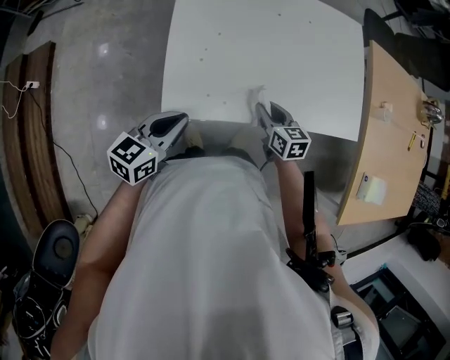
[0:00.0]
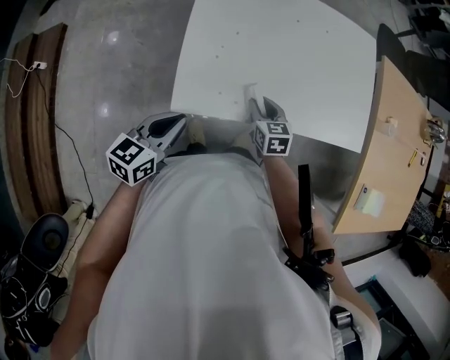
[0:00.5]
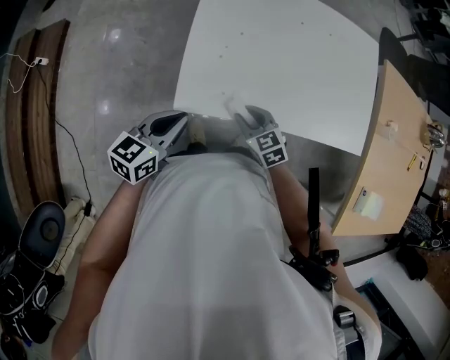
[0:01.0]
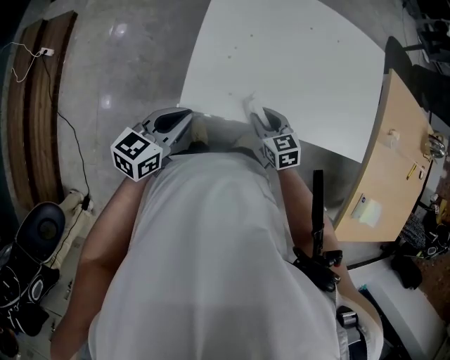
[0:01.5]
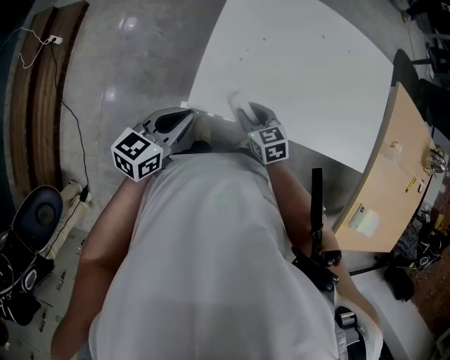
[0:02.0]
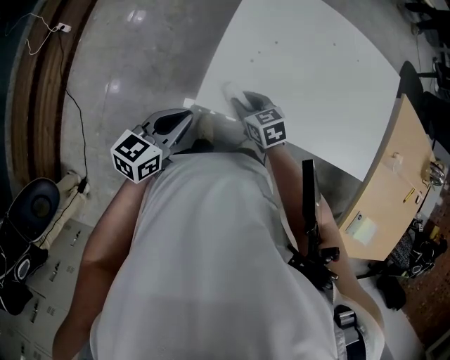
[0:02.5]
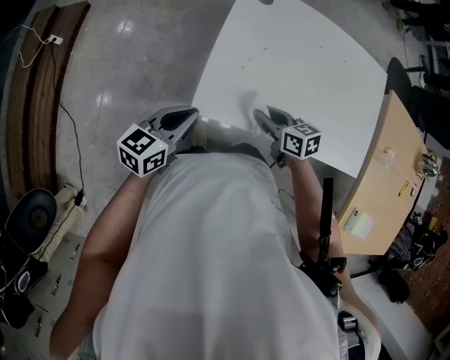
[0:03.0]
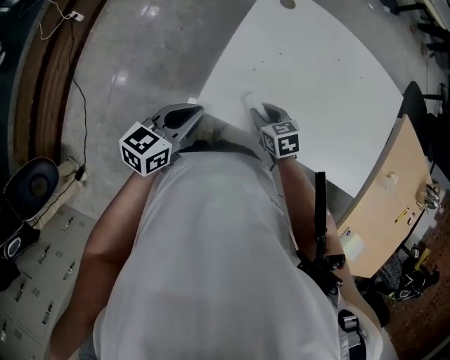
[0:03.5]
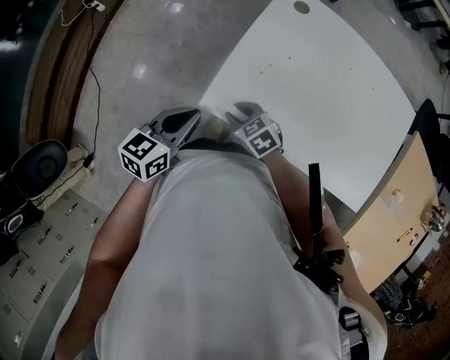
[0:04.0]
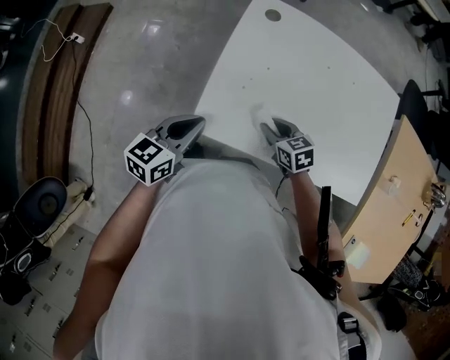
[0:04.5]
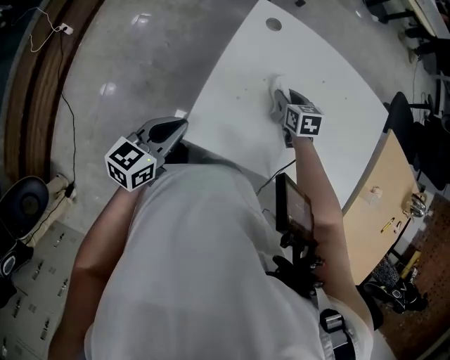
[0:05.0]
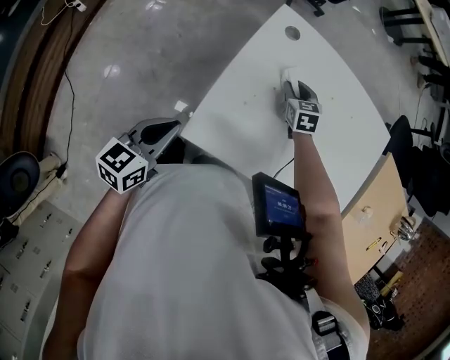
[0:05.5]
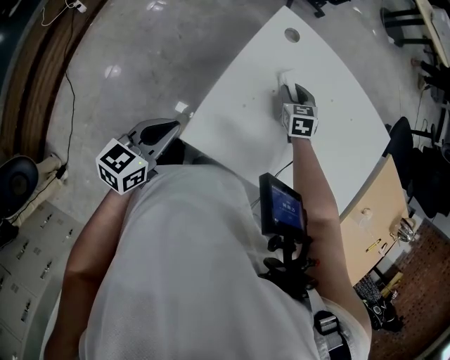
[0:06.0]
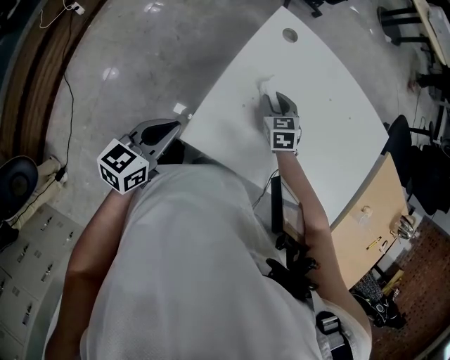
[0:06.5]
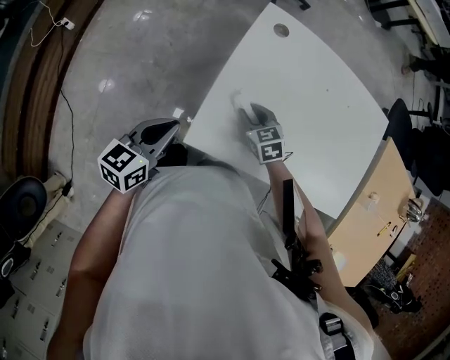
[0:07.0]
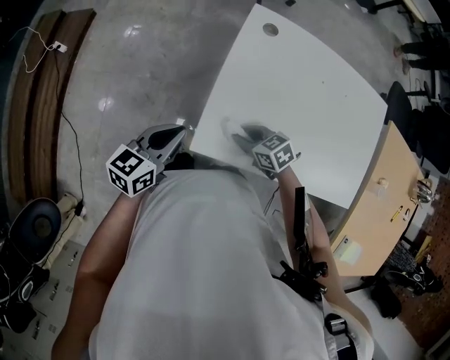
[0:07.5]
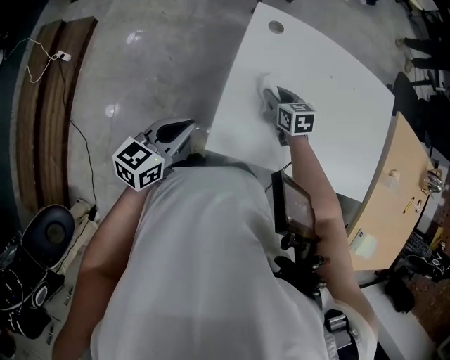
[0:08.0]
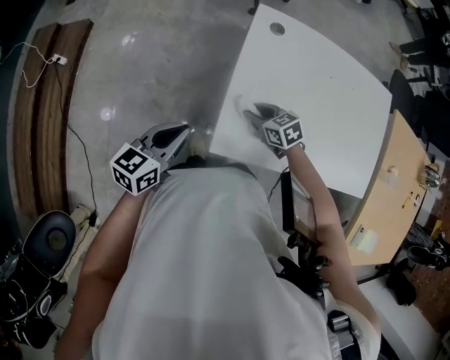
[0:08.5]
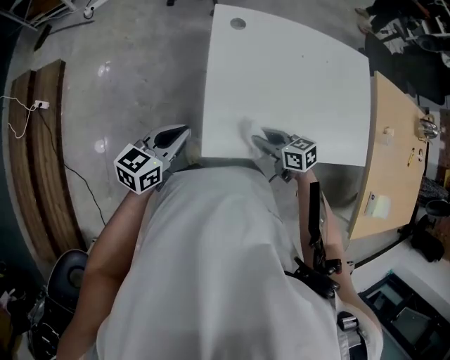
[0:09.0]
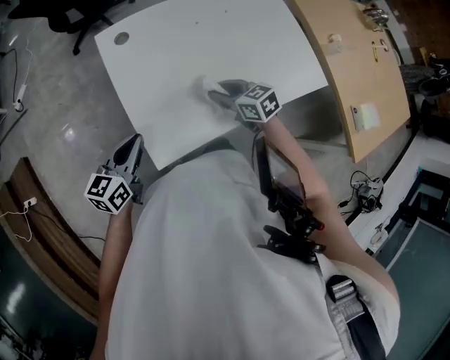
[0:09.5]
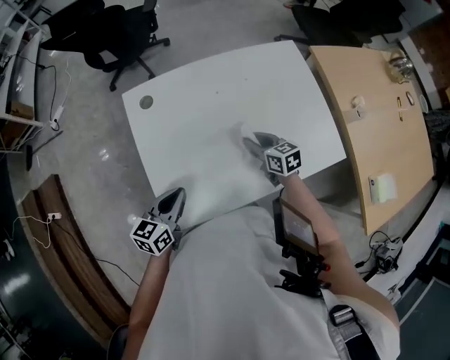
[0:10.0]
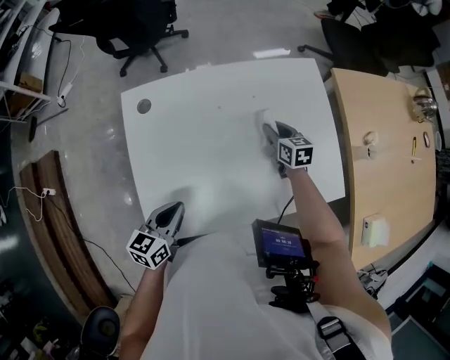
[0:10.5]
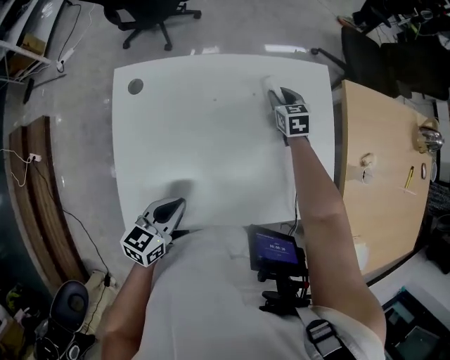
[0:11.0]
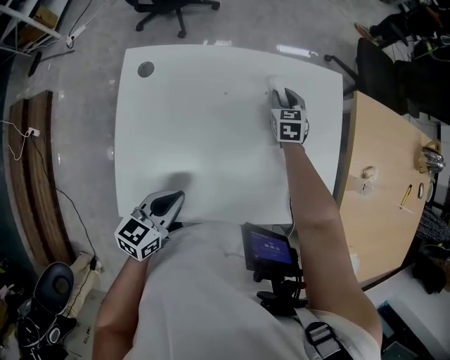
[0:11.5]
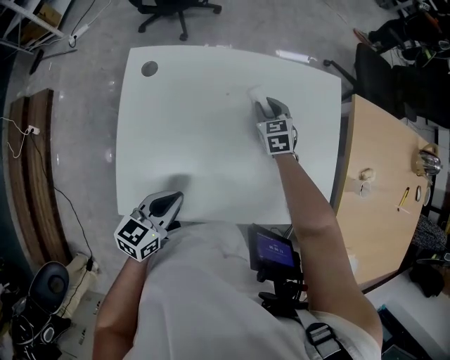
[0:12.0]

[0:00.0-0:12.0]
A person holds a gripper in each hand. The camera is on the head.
0:00.0 to 0:02.0: The left gripper heads to the left, covering approximately 5 cm; the right gripper heads to the left, covering approximately 15 cm, and swivels about 30 degrees.
0:02.0 to 0:04.0: The right gripper ends up approximately 10 cm from where it was, and turns by some 30 degrees.
0:04.0 to 0:06.0: The right gripper shifts by approximately 30 cm, and turns by some 40 degrees; the left gripper shifts by roughly 5 cm.
0:06.0 to 0:08.0: The right gripper travels to the left by about 5 cm, goes backward and returns, approximately 20 cm each way, and changes its angle by about 20 degrees.
0:08.0 to 0:10.0: The right gripper ends up roughly 25 cm from where it was, and swivels roughly 30 degrees. Meanwhile the left gripper changes place by about 20 cm.
0:10.0 to 0:12.0: The right gripper is displaced forward by some 20 cm, and rotates approximately 30 degrees, while the left gripper travels to the right by roughly 10 cm.

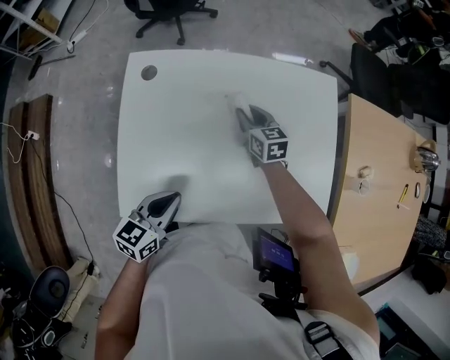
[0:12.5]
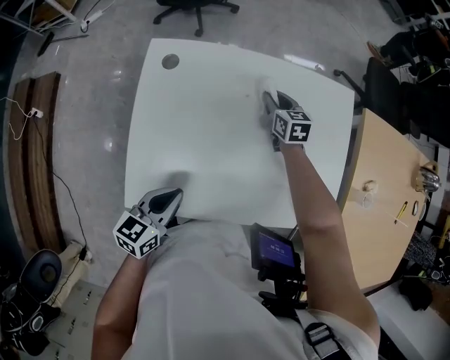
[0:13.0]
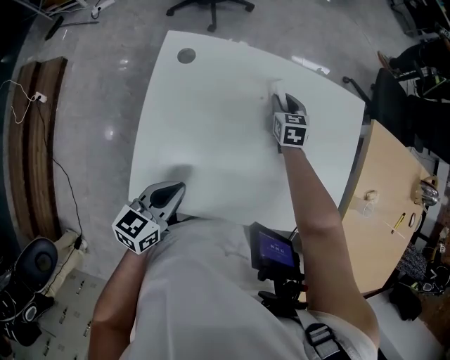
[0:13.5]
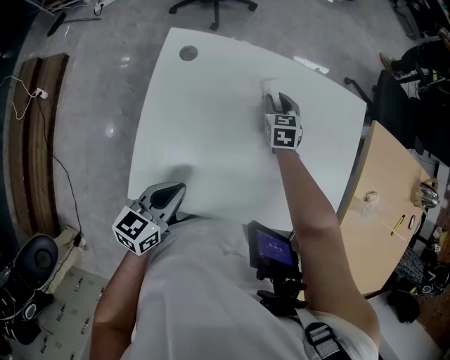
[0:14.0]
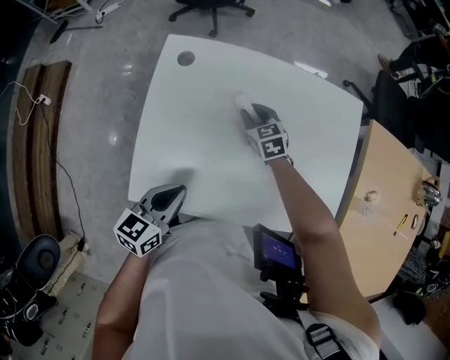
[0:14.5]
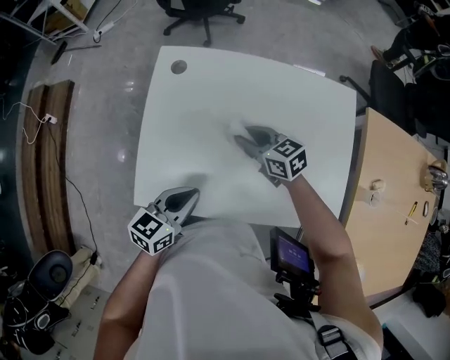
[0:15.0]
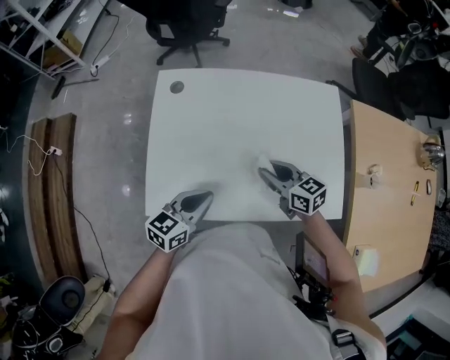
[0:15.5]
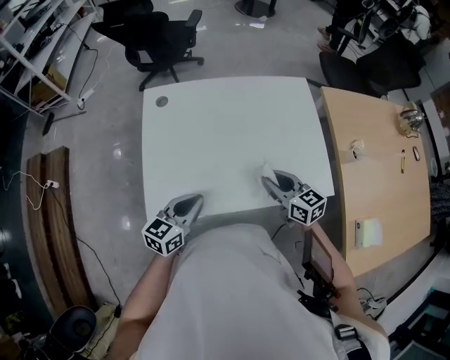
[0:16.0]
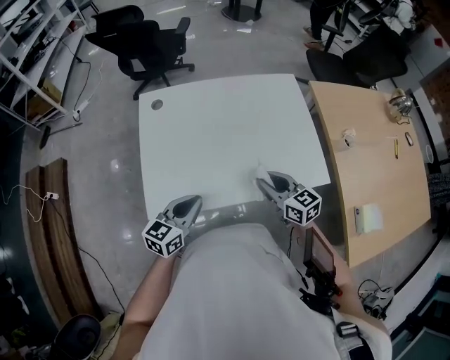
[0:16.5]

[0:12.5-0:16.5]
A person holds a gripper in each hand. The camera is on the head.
0:12.5 to 0:14.5: The right gripper moves to the left, roughly 10 cm, and rotates about 20 degrees.
0:14.5 to 0:16.5: The left gripper heads backward, covering some 10 cm, and changes its angle by some 20 degrees; the right gripper is displaced backward and upward by some 35 cm, and swivels roughly 30 degrees.

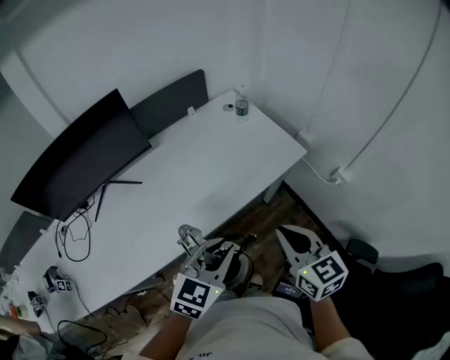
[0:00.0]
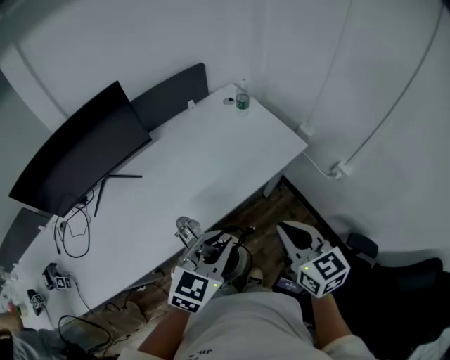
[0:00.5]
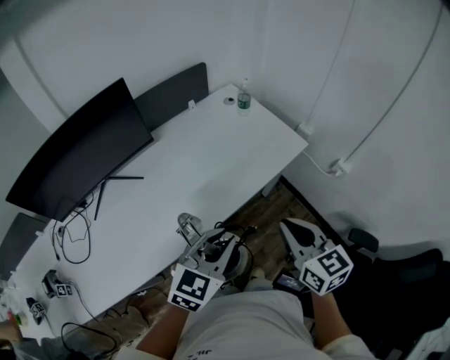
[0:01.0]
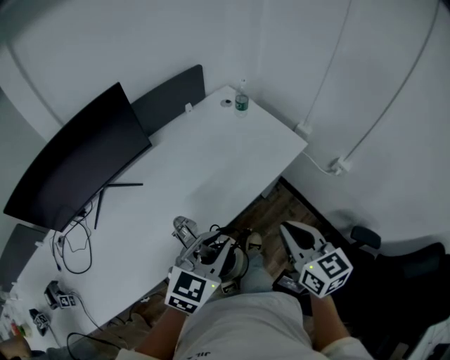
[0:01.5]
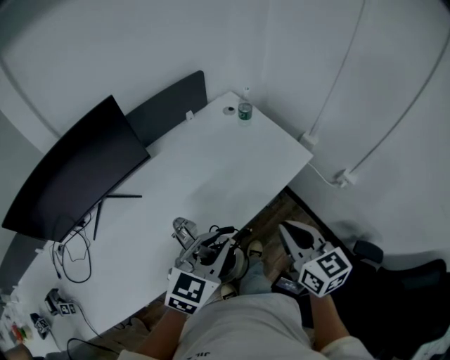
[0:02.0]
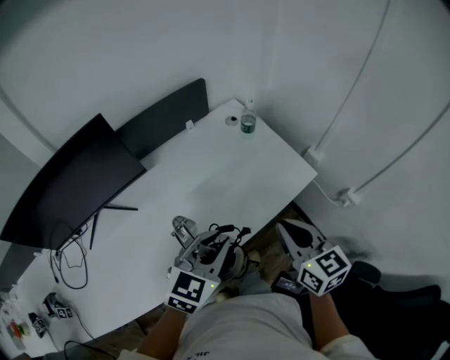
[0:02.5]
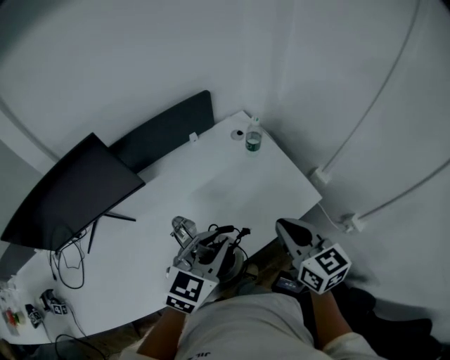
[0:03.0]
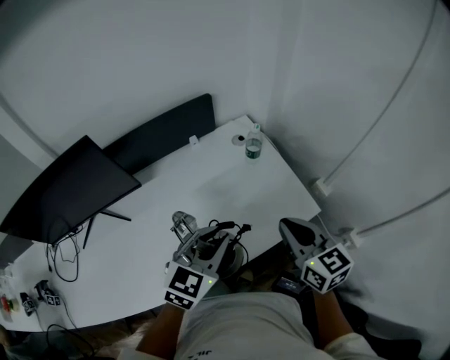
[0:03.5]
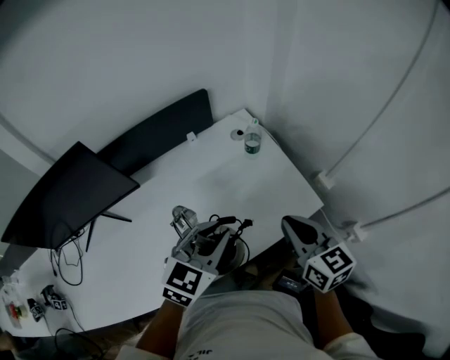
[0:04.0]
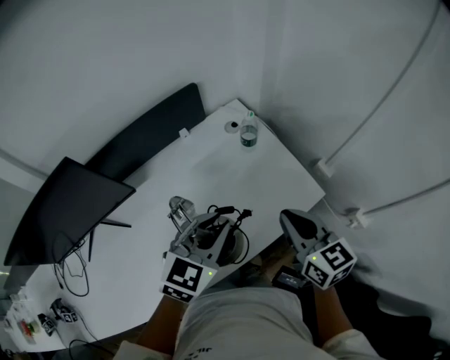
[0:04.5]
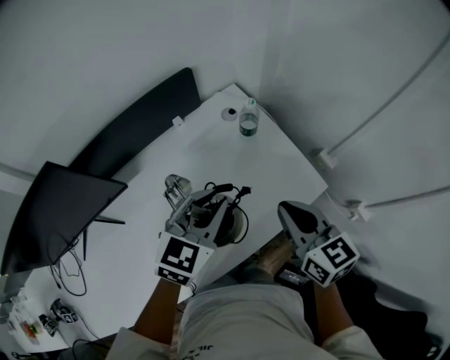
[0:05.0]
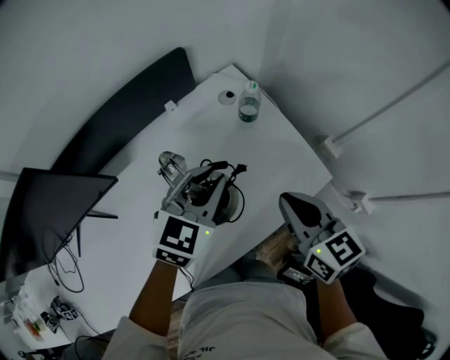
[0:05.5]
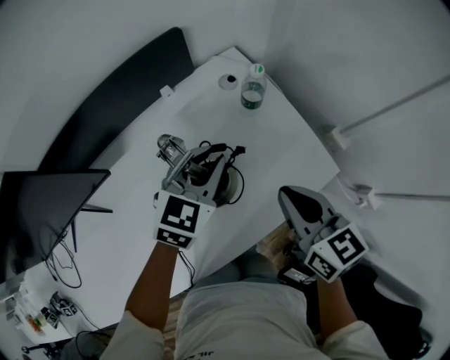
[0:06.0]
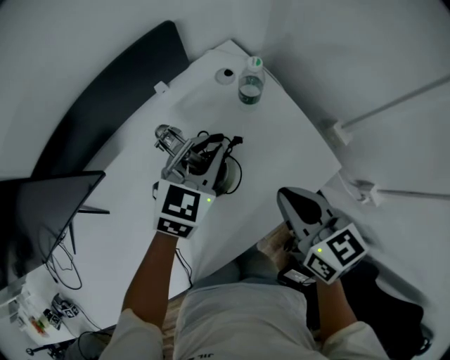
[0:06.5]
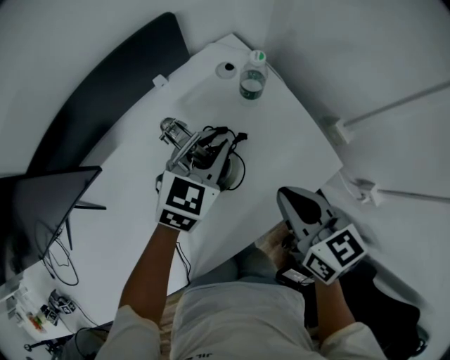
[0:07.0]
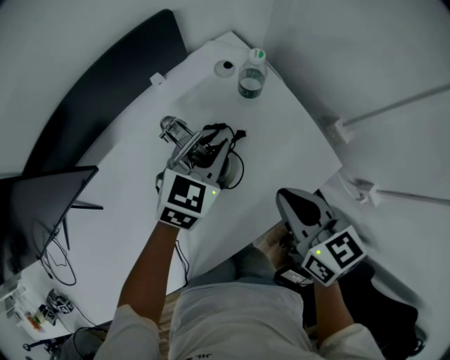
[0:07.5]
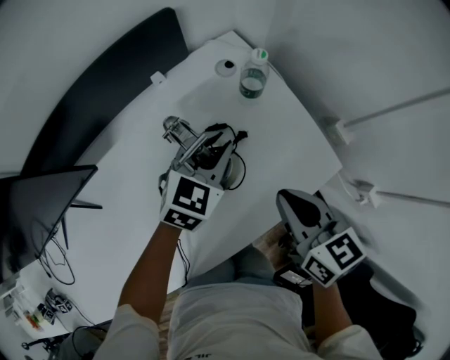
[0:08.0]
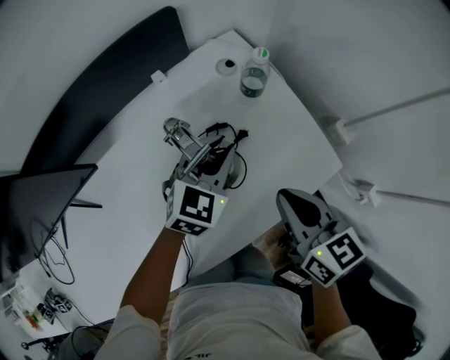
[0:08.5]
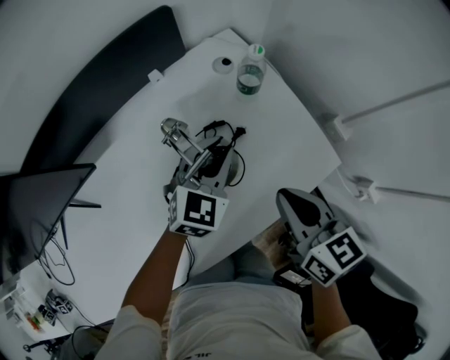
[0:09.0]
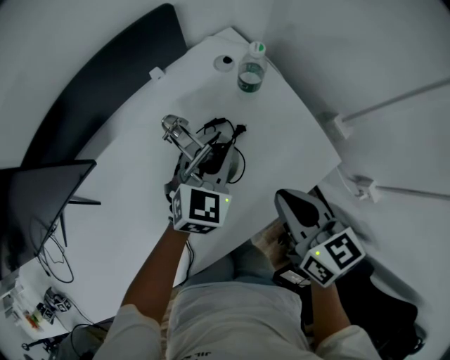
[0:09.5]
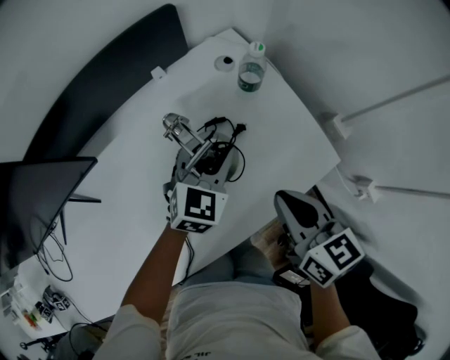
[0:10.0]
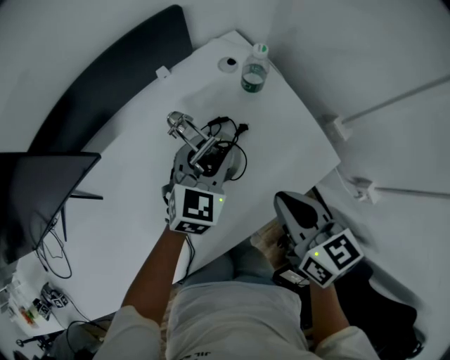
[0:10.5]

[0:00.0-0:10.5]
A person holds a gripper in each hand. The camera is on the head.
0:00.0 to 0:02.0: The right gripper shifts approximately 5 cm forward, while the left gripper shifts approximately 10 cm forward and to the left.
0:02.0 to 0:04.0: Both grippers move forward, some 20 cm.
0:04.0 to 0:06.5: The right gripper heads downward and forward, covering about 10 cm. The left gripper shifts some 20 cm forward and downward.
0:06.5 to 0:08.5: The grippers stay close to where they were, moving slightly.
0:08.5 to 0:10.5: The left gripper opens its fingers.
